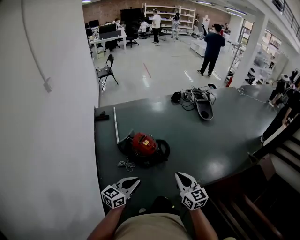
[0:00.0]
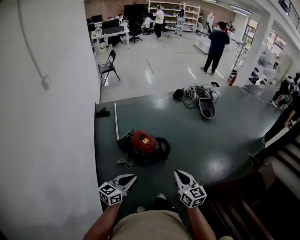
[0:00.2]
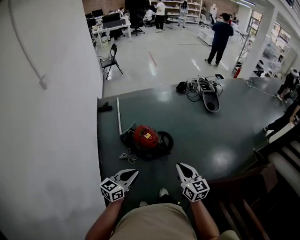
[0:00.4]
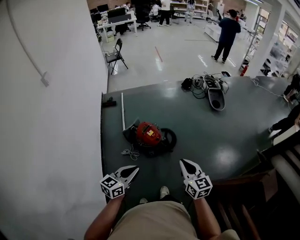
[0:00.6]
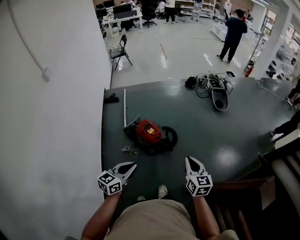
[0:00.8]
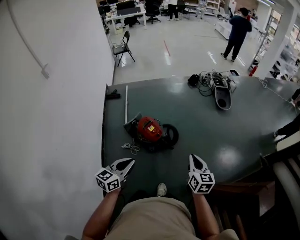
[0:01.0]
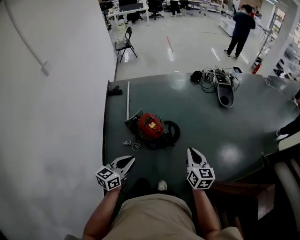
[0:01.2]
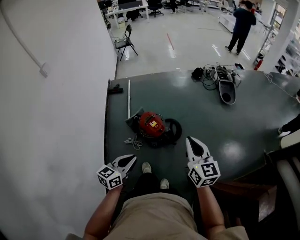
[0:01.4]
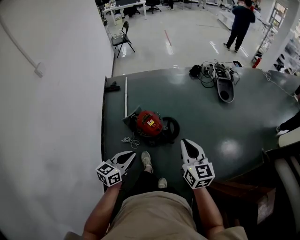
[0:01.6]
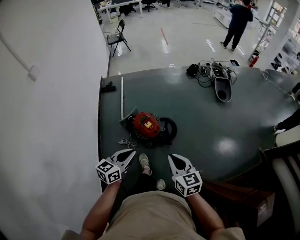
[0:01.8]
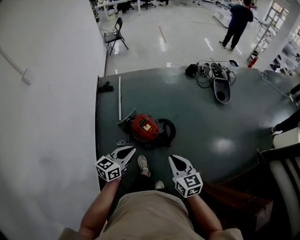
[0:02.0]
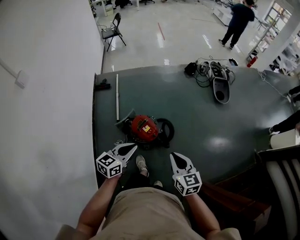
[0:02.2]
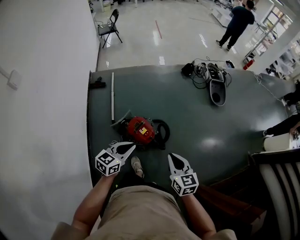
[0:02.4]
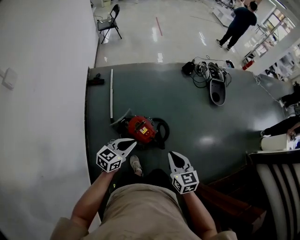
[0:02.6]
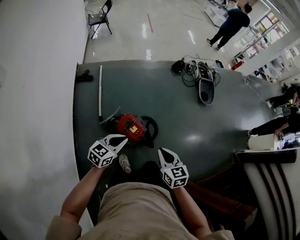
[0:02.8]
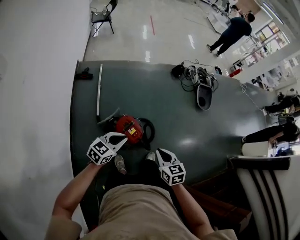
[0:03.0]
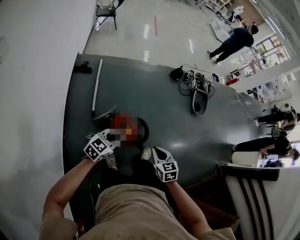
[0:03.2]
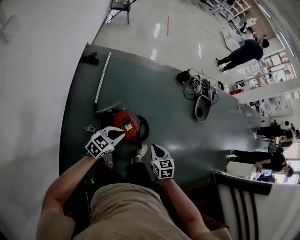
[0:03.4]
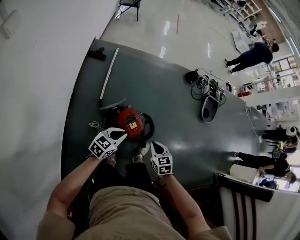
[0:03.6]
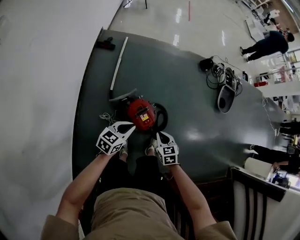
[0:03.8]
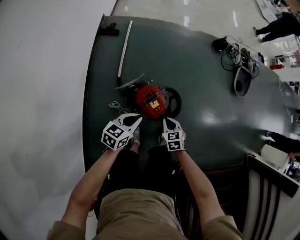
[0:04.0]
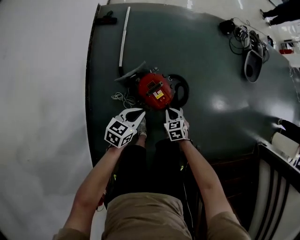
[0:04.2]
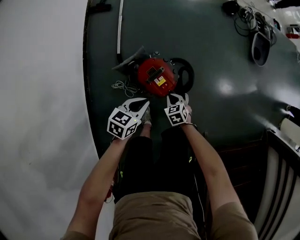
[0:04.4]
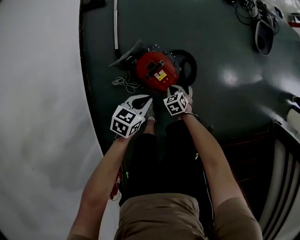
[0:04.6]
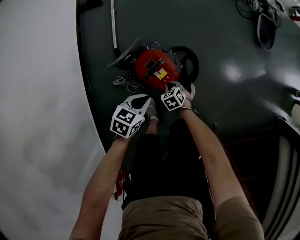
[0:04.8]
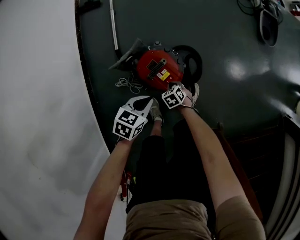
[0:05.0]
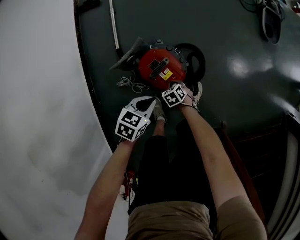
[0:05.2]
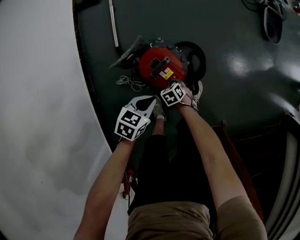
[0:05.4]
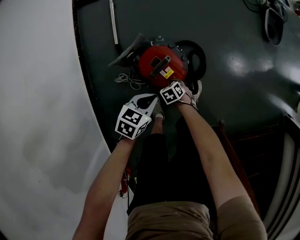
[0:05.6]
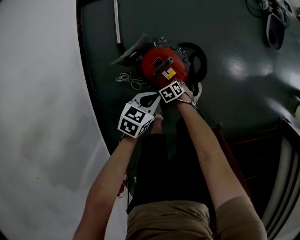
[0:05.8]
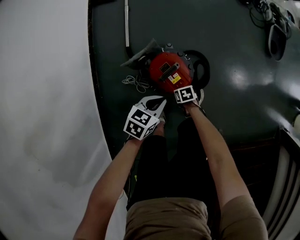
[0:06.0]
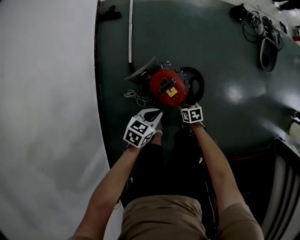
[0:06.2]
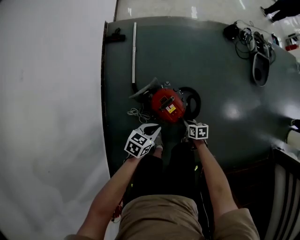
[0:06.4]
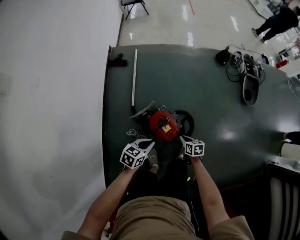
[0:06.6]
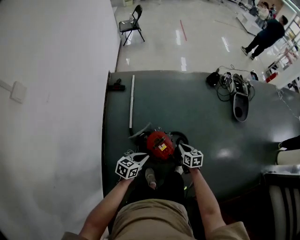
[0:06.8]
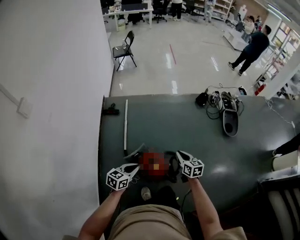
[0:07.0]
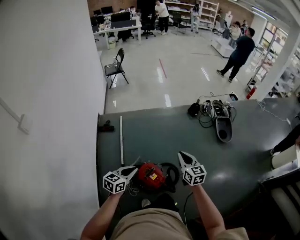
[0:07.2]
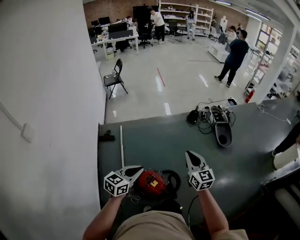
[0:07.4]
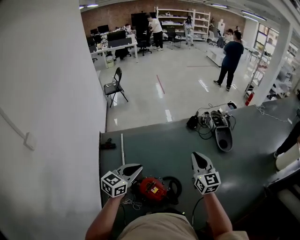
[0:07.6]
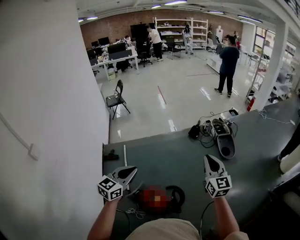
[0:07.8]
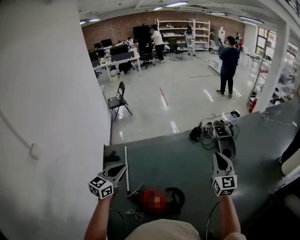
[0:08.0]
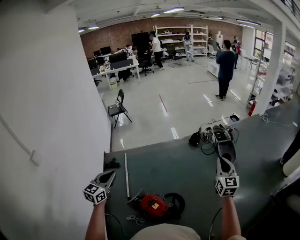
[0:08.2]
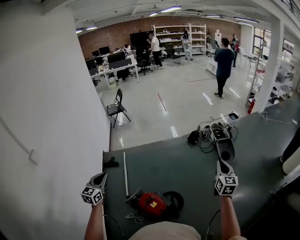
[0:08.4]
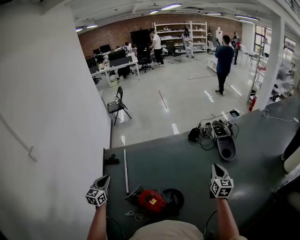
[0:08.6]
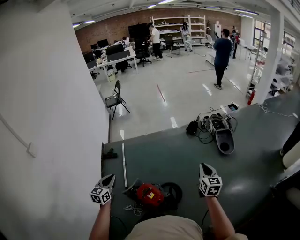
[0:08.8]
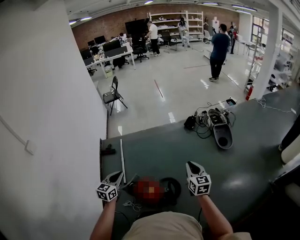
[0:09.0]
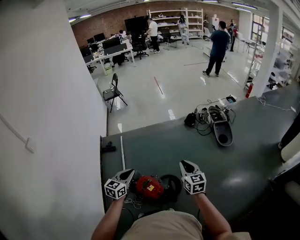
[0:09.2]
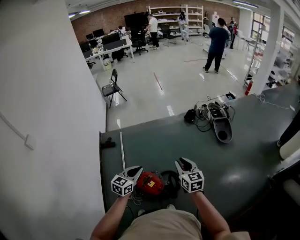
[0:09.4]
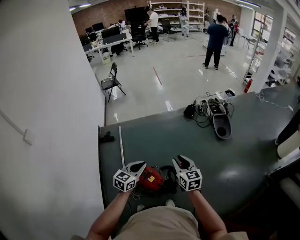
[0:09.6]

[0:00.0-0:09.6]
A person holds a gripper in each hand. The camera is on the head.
0:00.0 to 0:01.6: The grippers both shift forward by about 20 cm.
0:01.6 to 0:03.2: The right gripper travels to the left, downward and forward by approximately 35 cm, and tilts its fingers approximately 30 degrees downward. The left gripper goes about 35 cm forward, to the left and downward, and turns by roughly 20 degrees.
0:03.2 to 0:04.8: The left gripper moves downward, approximately 35 cm, and swivels some 30 degrees; the right gripper is displaced downward by about 50 cm, and changes its angle by about 30 degrees.
0:04.8 to 0:06.4: Both grippers move upward, roughly 10 cm. The right gripper rotates approximately 40 degrees.
0:06.4 to 0:08.0: Both grippers move upward, about 60 cm. The right gripper tips its fingers upward by approximately 60 degrees; the left gripper tips its fingers upward by roughly 30 degrees.
0:08.0 to 0:09.6: The left gripper goes roughly 20 cm downward and to the right. Meanwhile the right gripper moves downward, to the left and backward, some 25 cm, swivels approximately 30 degrees, and opens up.

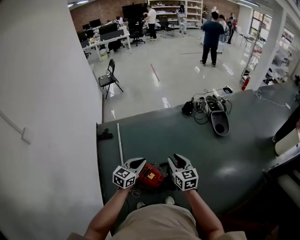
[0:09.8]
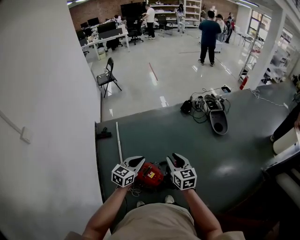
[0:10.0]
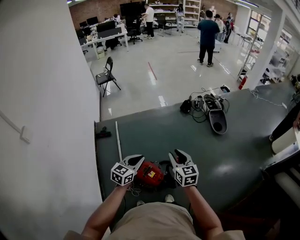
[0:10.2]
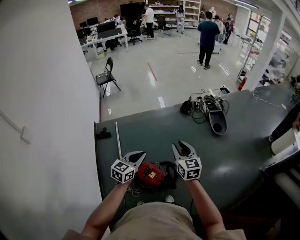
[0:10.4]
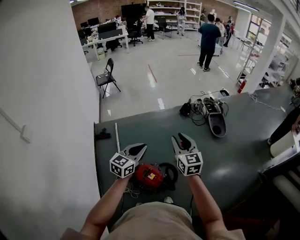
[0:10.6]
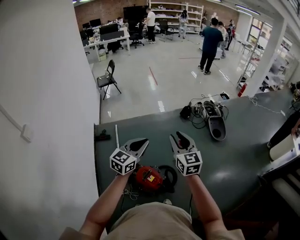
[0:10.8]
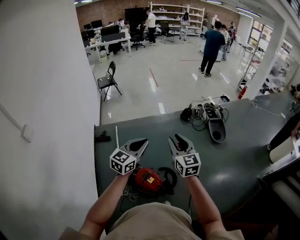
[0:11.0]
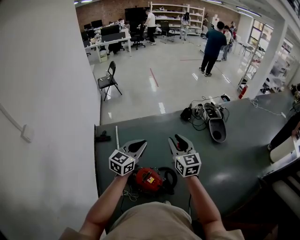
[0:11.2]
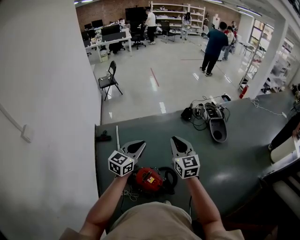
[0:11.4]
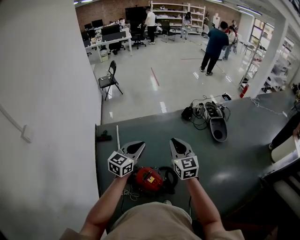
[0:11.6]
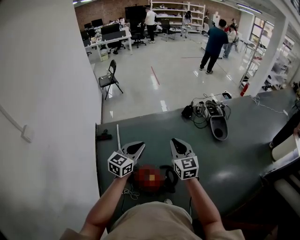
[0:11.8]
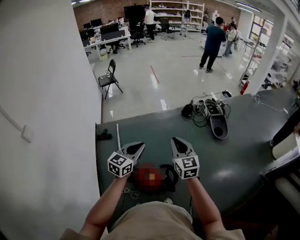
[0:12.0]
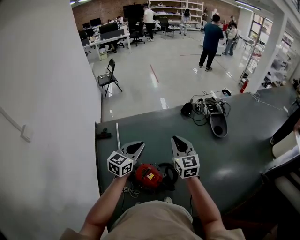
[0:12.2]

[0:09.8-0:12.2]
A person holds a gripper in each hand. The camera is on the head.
0:09.8 to 0:11.0: The left gripper goes about 15 cm upward and forward. The right gripper moves upward, to the left and forward, some 15 cm.
0:11.0 to 0:12.2: The right gripper ends up roughly 5 cm from where it was, and closes its fingers.

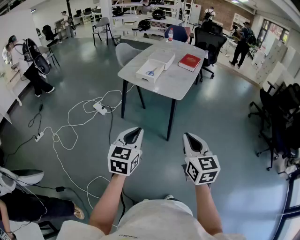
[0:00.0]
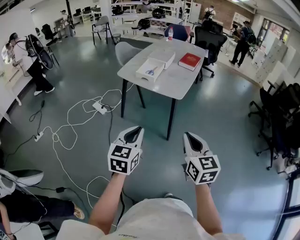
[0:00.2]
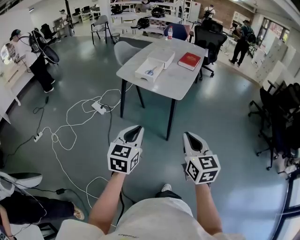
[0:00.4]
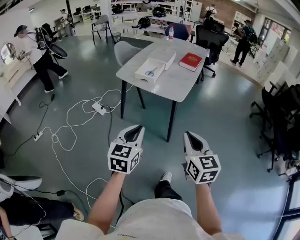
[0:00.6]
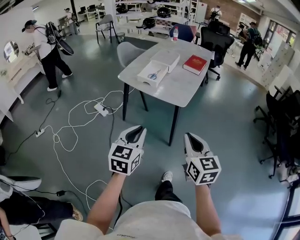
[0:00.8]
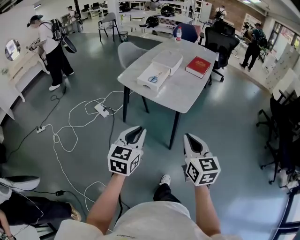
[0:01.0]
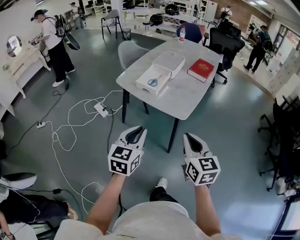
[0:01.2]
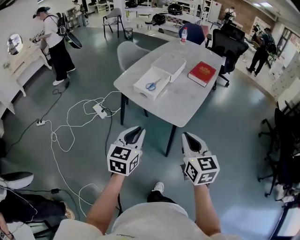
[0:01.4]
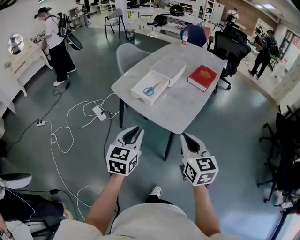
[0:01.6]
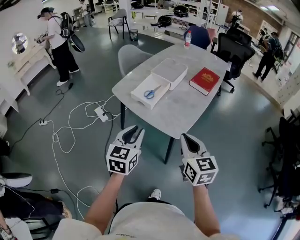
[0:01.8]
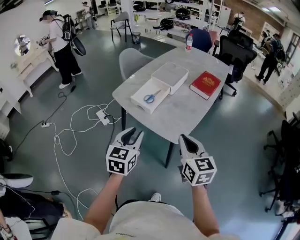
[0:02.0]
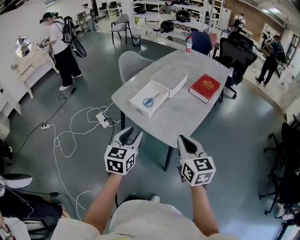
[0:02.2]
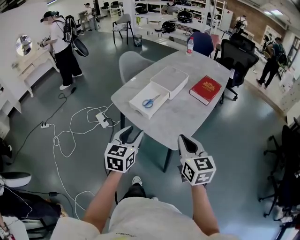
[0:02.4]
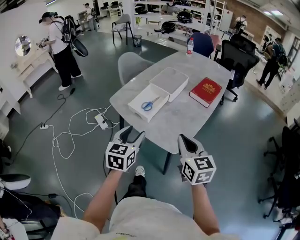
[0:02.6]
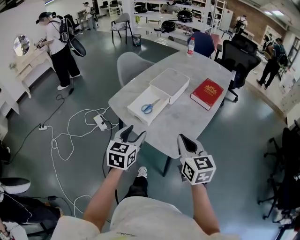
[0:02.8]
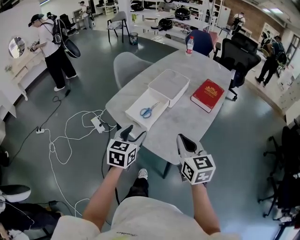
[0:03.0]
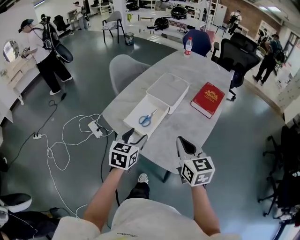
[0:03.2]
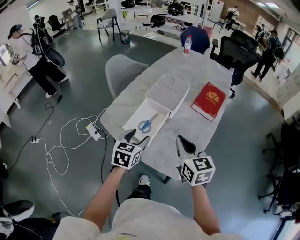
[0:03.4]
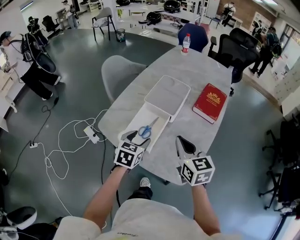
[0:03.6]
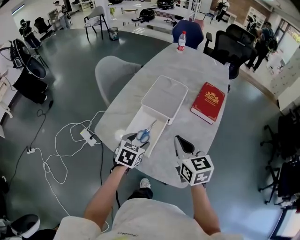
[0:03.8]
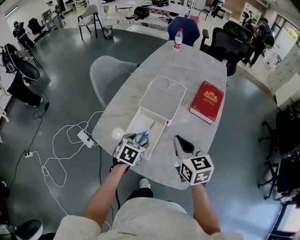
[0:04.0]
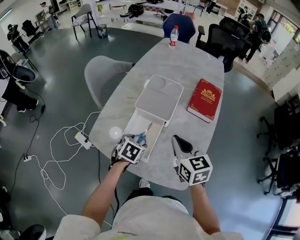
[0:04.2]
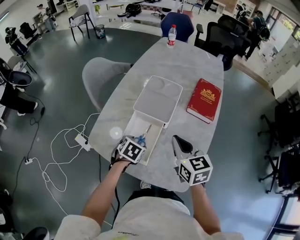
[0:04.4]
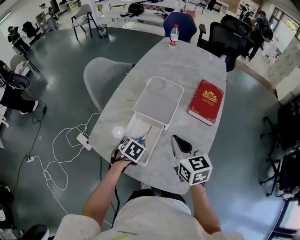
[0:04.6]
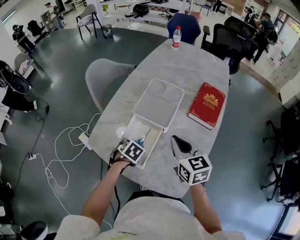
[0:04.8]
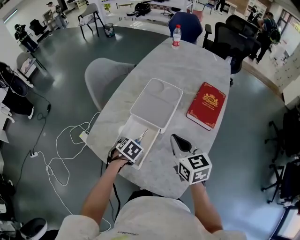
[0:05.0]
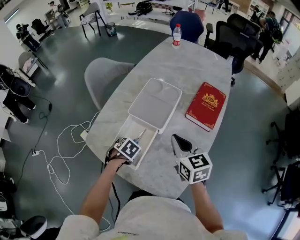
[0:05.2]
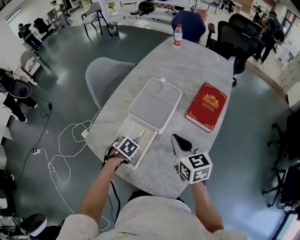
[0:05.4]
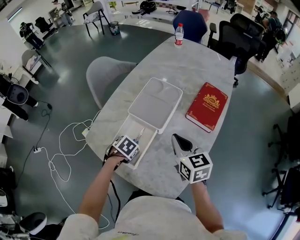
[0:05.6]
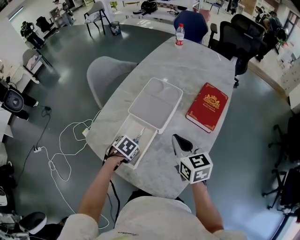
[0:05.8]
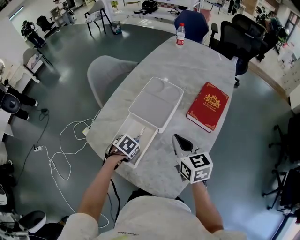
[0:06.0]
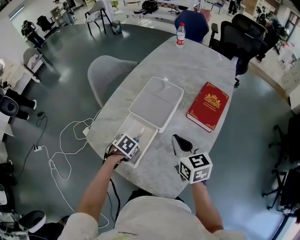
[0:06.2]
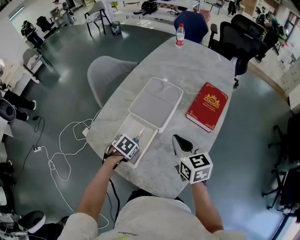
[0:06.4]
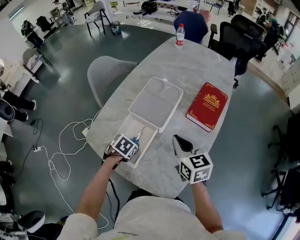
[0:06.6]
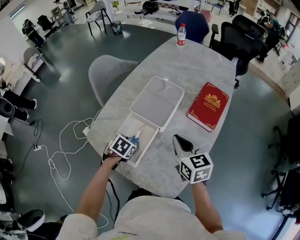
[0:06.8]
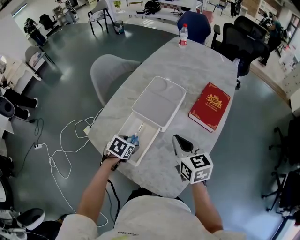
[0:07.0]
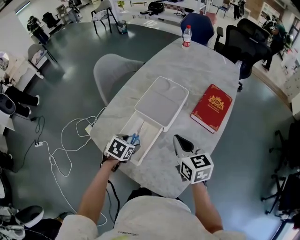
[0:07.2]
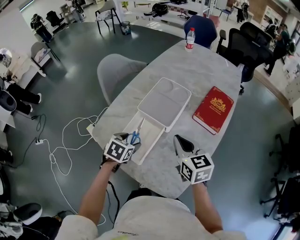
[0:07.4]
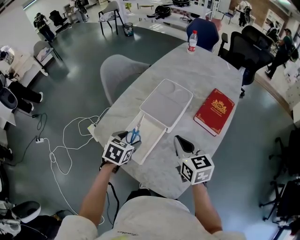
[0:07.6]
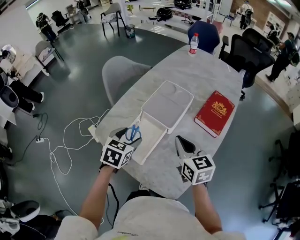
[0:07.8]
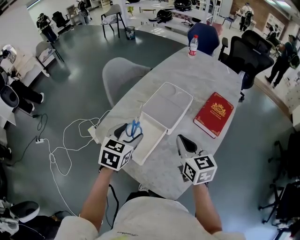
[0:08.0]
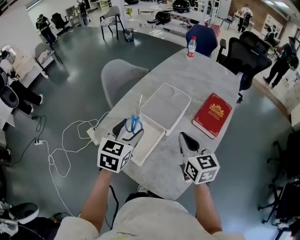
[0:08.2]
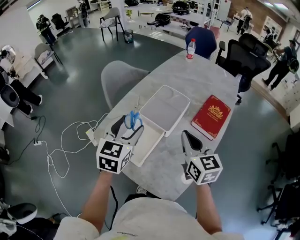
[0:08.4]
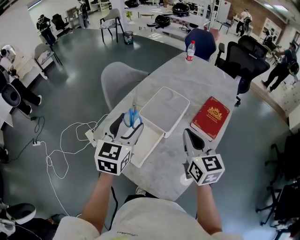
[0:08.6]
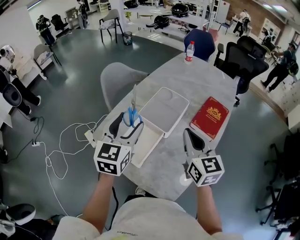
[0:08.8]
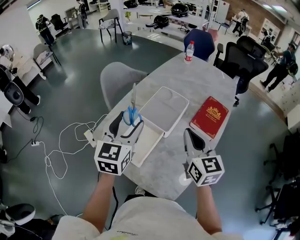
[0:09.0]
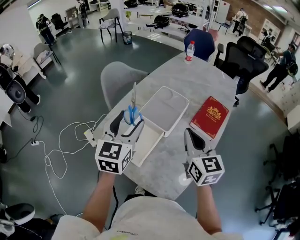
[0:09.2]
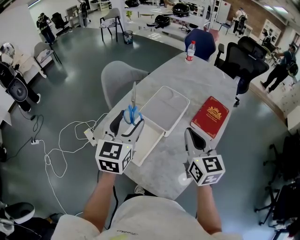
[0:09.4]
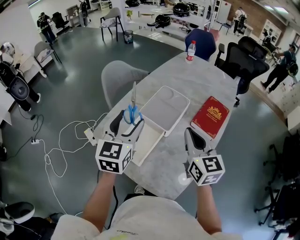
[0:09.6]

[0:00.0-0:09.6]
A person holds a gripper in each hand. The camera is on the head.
0:00.0 to 0:01.6: Both grippers move forward, roughly 30 cm.
0:01.6 to 0:03.2: Both grippers move forward, approximately 25 cm. The left gripper opens.
0:03.2 to 0:04.8: The right gripper goes about 20 cm forward, while the left gripper goes about 20 cm downward and forward, and tips its fingers downward by about 40 degrees.
0:04.8 to 0:06.4: The grippers move only a little.
0:06.4 to 0:08.0: The left gripper heads upward, covering approximately 20 cm, and angles its fingers upward, by roughly 40 degrees.
0:08.0 to 0:09.6: The right gripper travels upward by roughly 5 cm, while the left gripper shifts some 10 cm upward, and rotates some 30 degrees.

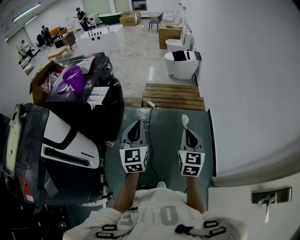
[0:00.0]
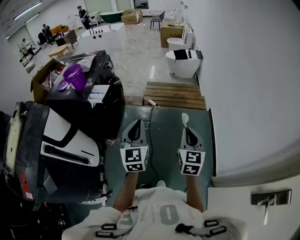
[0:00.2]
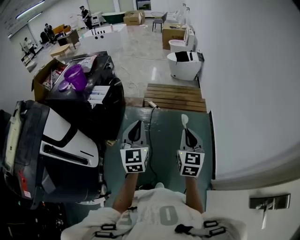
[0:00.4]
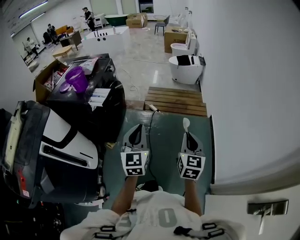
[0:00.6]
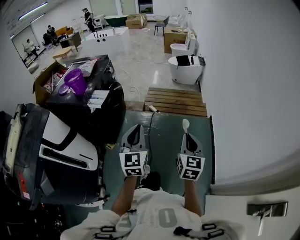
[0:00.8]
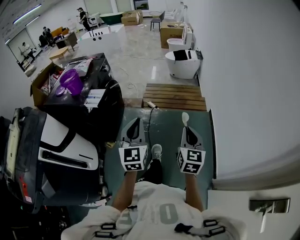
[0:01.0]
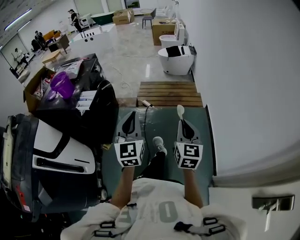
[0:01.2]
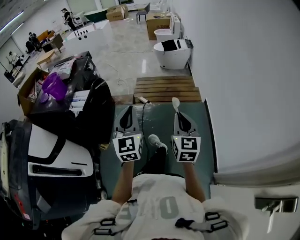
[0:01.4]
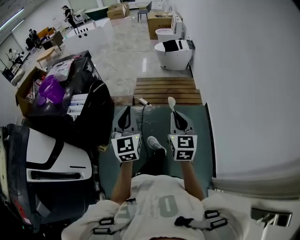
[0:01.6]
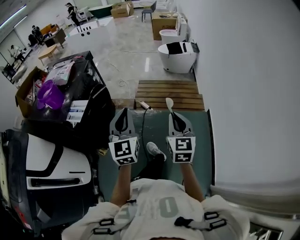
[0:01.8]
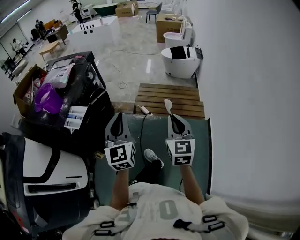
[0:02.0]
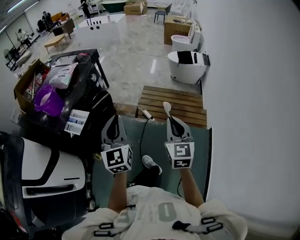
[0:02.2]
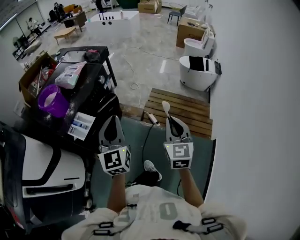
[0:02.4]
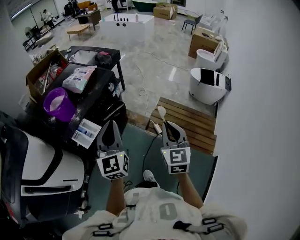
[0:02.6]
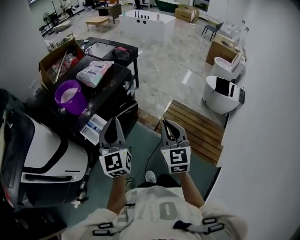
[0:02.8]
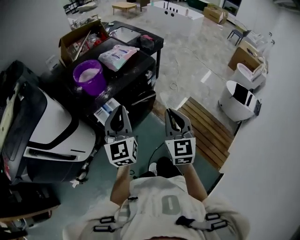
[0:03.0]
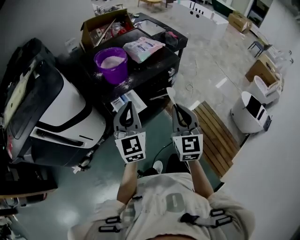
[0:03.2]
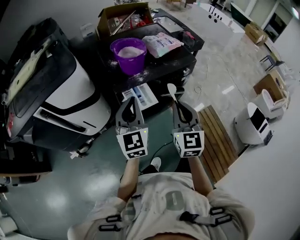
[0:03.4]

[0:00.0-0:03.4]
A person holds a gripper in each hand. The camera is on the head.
0:00.0 to 0:01.6: Both grippers move forward, some 20 cm.
0:01.6 to 0:03.4: The right gripper ends up approximately 50 cm from where it was, and turns by some 70 degrees, while the left gripper ends up roughly 35 cm from where it was, and changes its angle by approximately 60 degrees.
